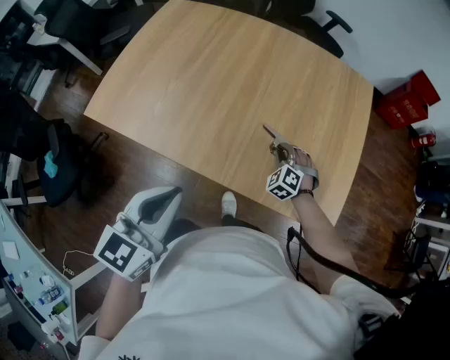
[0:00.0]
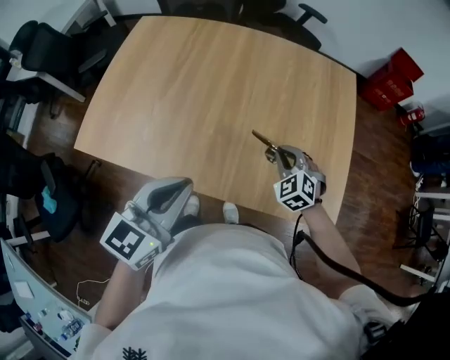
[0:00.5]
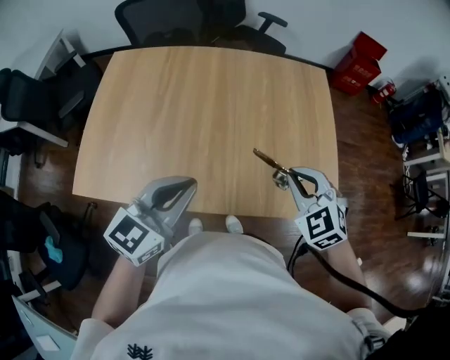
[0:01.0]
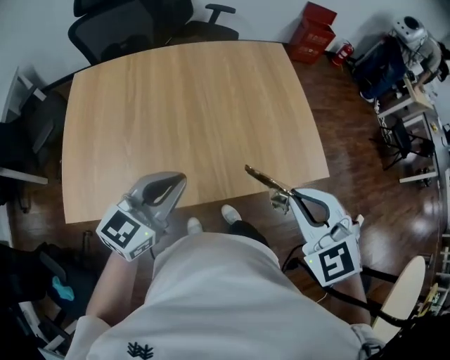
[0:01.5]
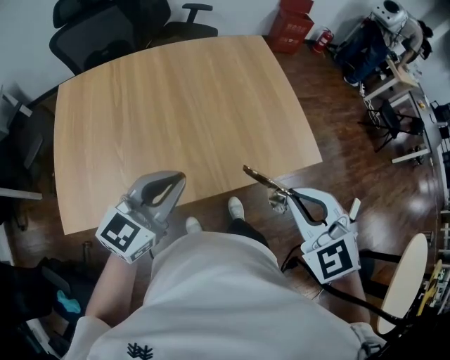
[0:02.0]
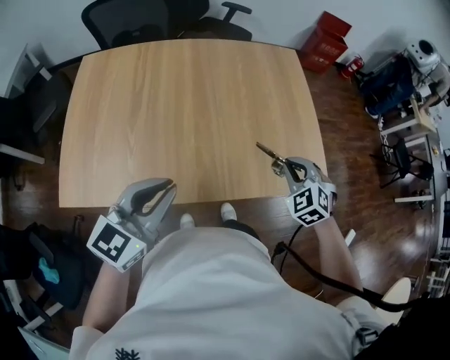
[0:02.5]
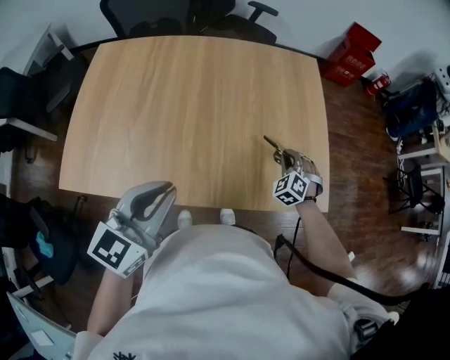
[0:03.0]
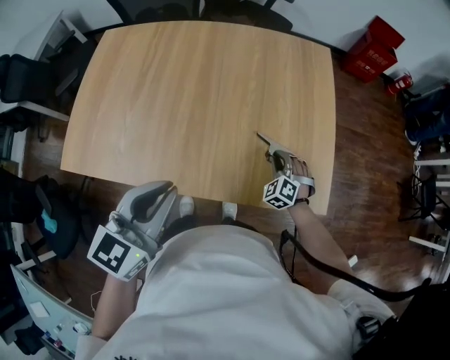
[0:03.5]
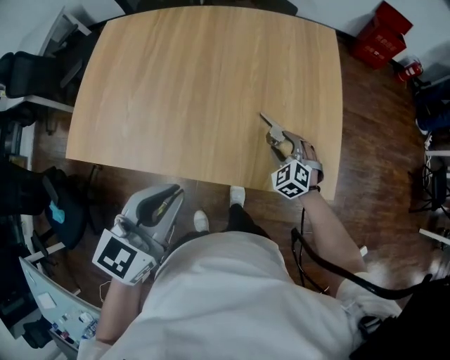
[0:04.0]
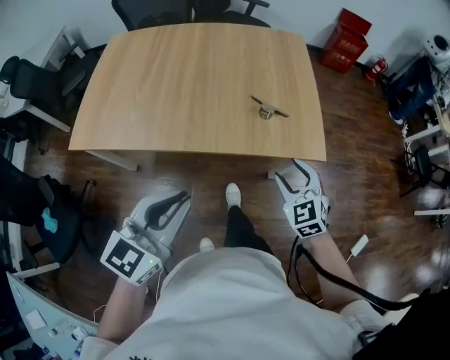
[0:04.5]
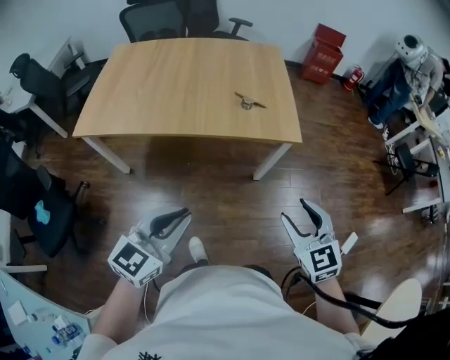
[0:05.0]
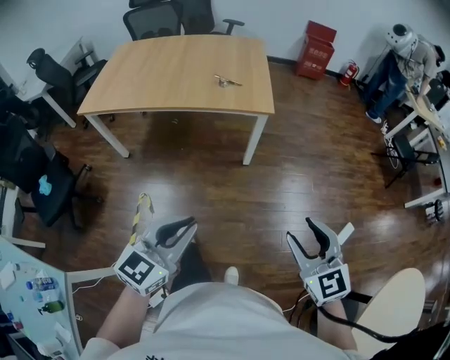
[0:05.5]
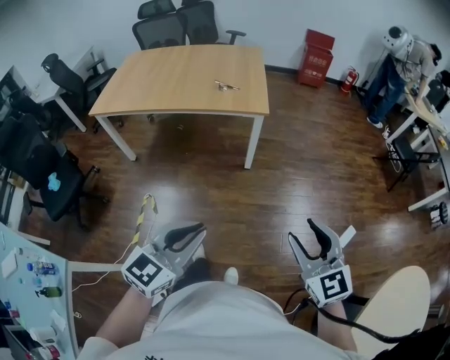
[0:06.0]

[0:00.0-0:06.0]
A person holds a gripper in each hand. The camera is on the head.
0:00.0 to 0:02.0: The right gripper heads upward, covering about 30 cm, and rotates approximately 40 degrees; the left gripper shifts by roughly 10 cm, and turns by approximately 50 degrees.
0:02.0 to 0:04.0: The left gripper heads to the right, covering about 10 cm, and turns by approximately 30 degrees. The right gripper moves downward and forward, approximately 35 cm, rotates about 20 degrees, and opens.
0:04.0 to 0:06.0: The pair of grippers is taken backward and to the right, approximately 60 cm. The right gripper goes about 25 cm upward, and points its fingers approximately 30 degrees further upward.

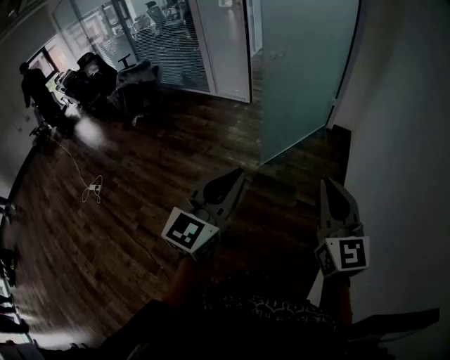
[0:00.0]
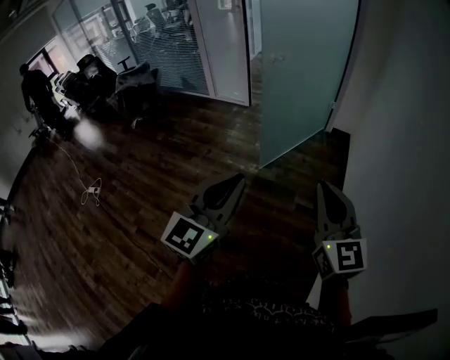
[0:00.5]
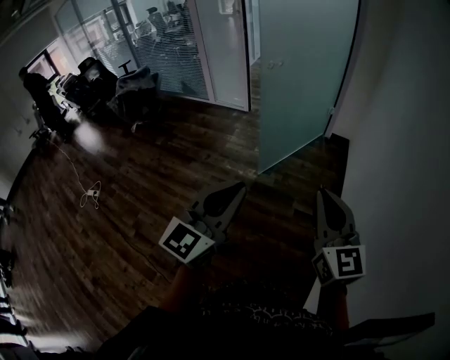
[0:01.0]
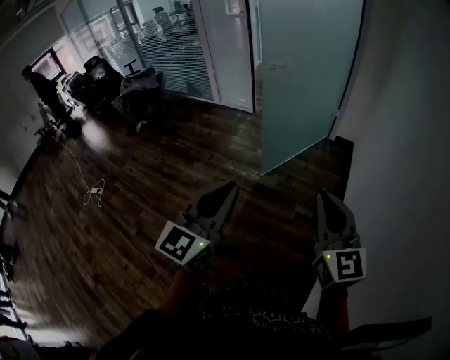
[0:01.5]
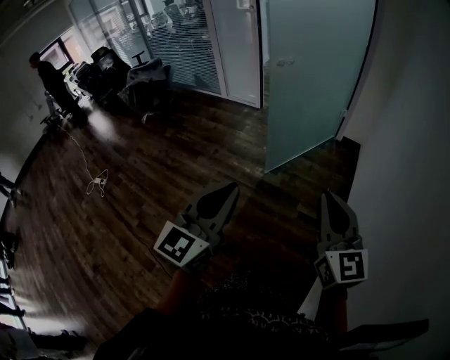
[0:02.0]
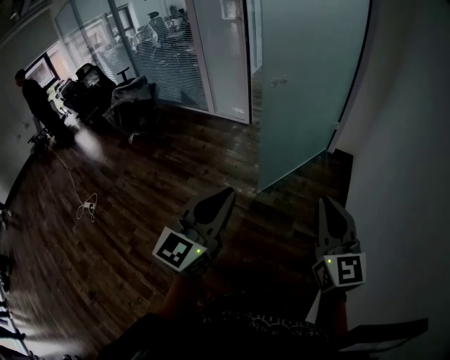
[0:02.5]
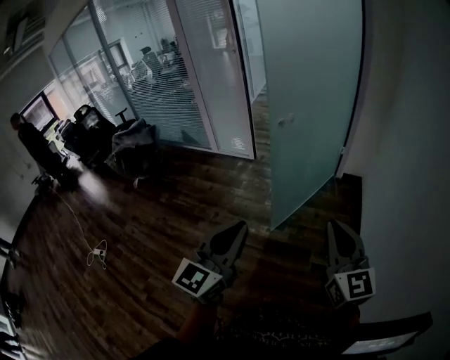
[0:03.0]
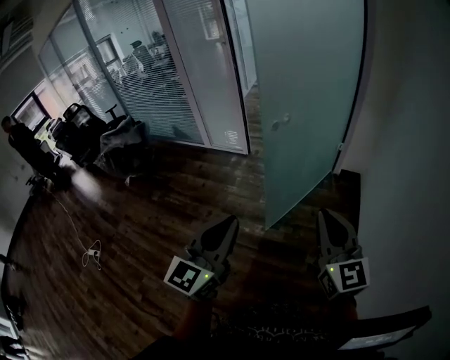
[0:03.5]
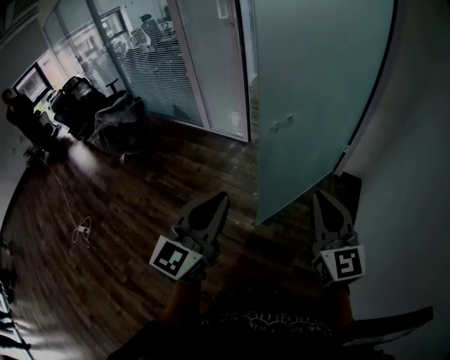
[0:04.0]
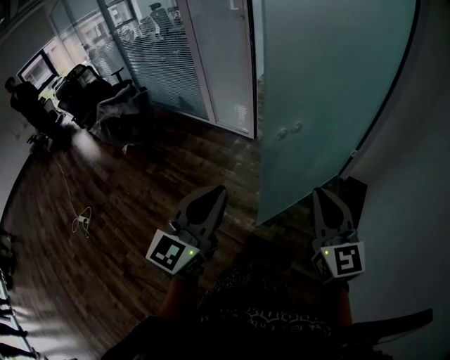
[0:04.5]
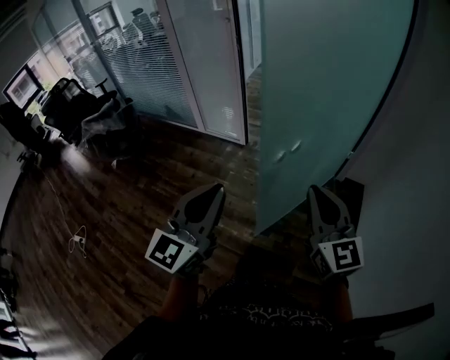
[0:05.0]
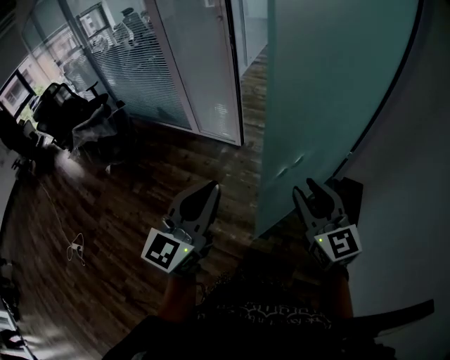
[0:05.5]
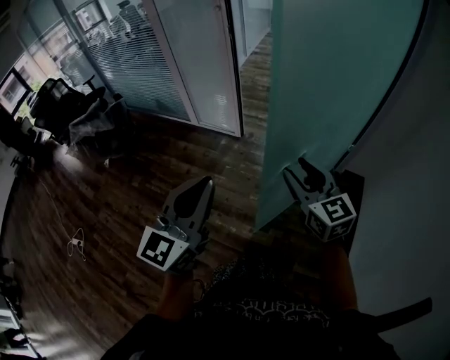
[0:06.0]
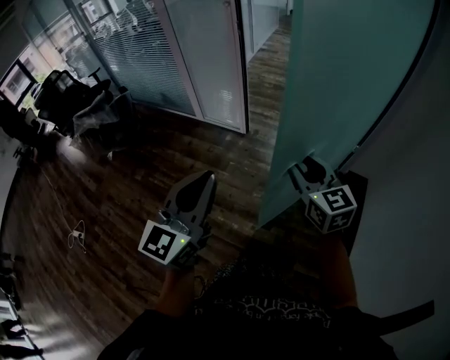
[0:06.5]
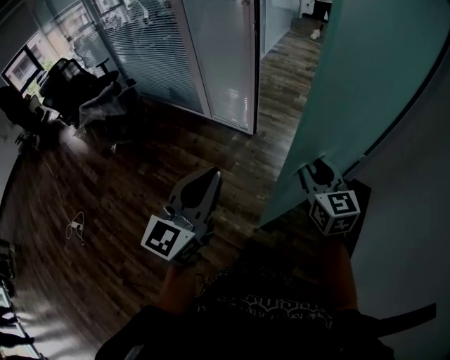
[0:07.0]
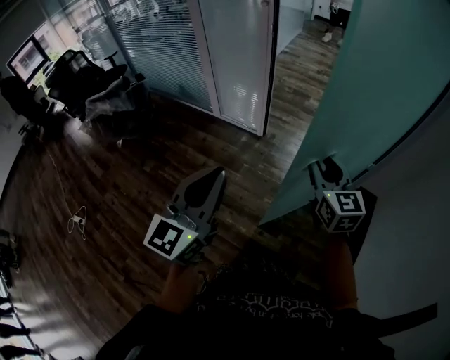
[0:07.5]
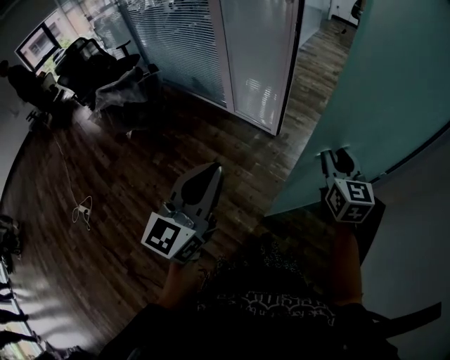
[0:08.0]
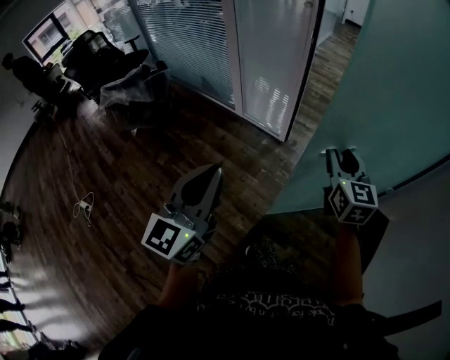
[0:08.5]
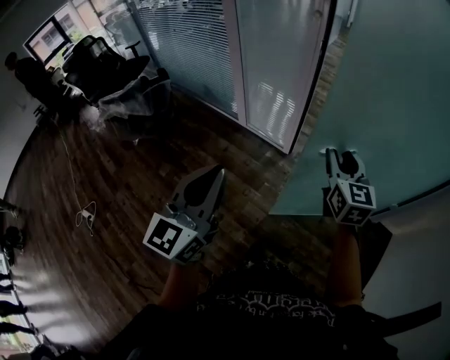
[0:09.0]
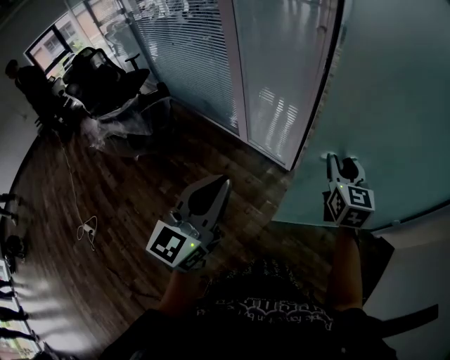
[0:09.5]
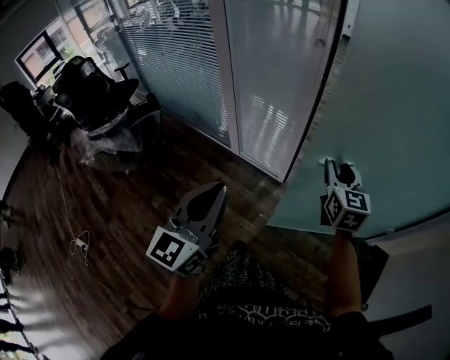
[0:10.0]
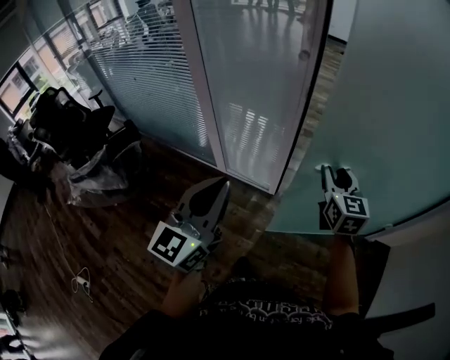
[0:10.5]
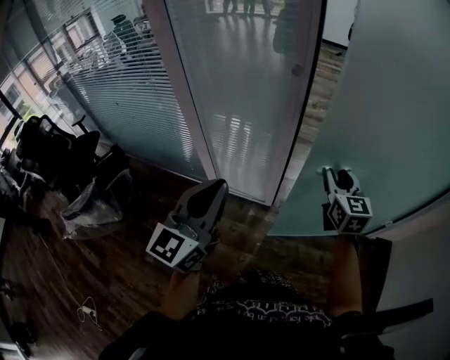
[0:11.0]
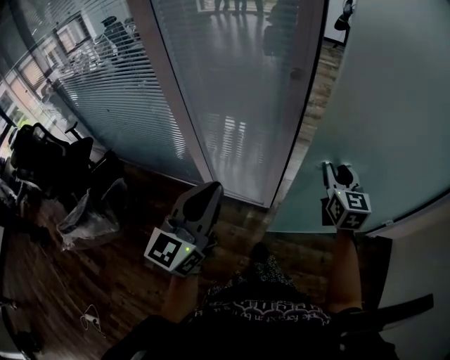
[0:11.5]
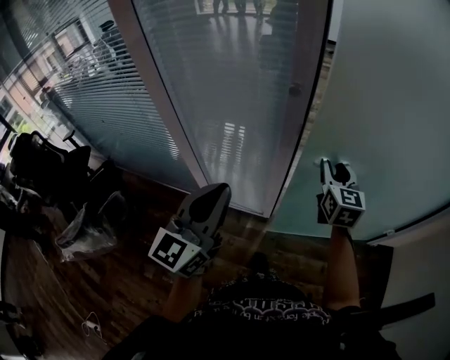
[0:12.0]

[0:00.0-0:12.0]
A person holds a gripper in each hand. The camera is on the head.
0:00.0 to 0:02.0: The right gripper shifts by approximately 5 cm.
0:02.0 to 0:04.0: The grippers both shift forward by about 40 cm.
0:04.0 to 0:06.0: Both grippers travel together forward, roughly 25 cm. The right gripper opens up.
0:06.0 to 0:08.0: The left gripper goes roughly 15 cm to the left and forward. Meanwhile the right gripper heads forward and to the left, covering roughly 15 cm.
0:08.0 to 0:10.0: The two grippers go approximately 30 cm forward.
0:10.0 to 0:12.0: Both grippers move forward, roughly 25 cm.

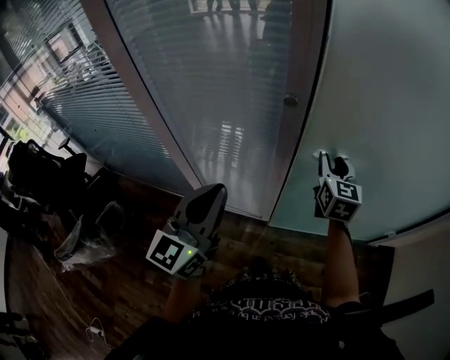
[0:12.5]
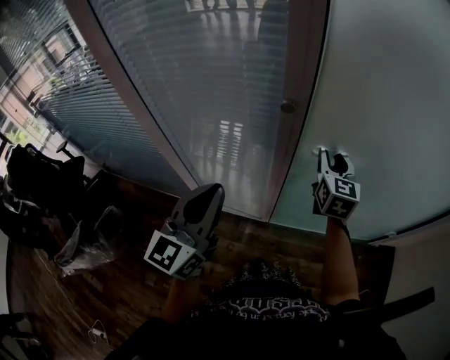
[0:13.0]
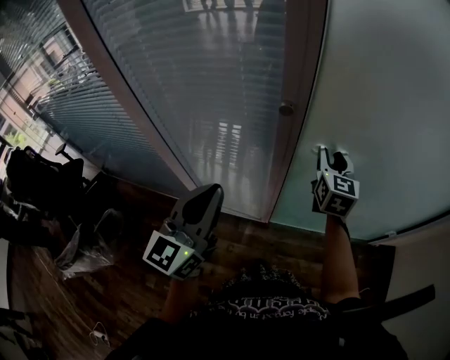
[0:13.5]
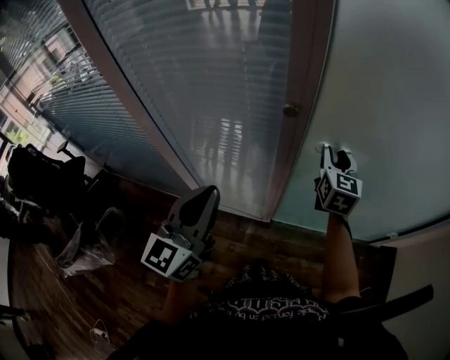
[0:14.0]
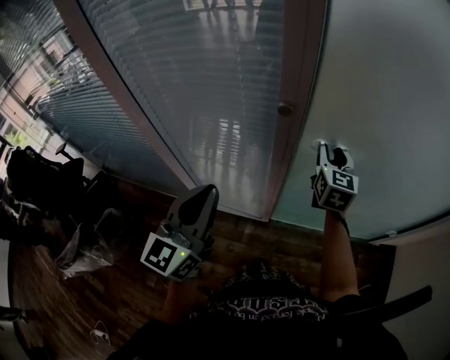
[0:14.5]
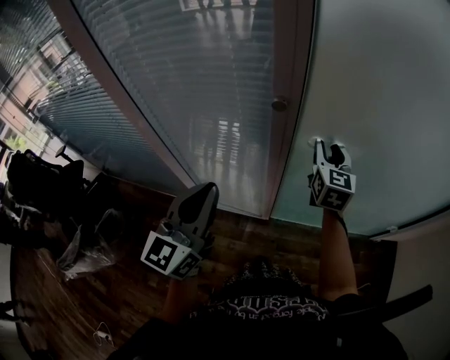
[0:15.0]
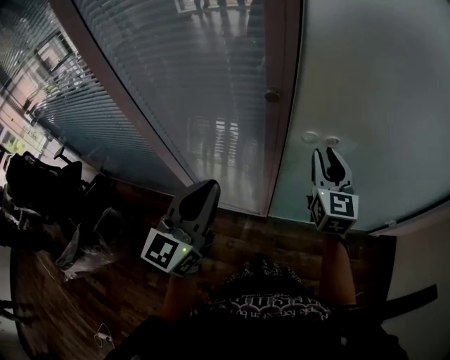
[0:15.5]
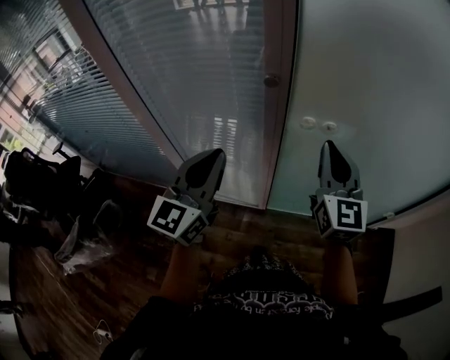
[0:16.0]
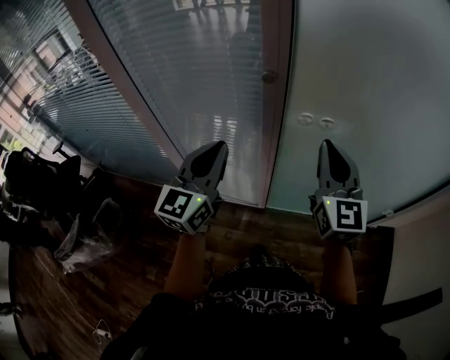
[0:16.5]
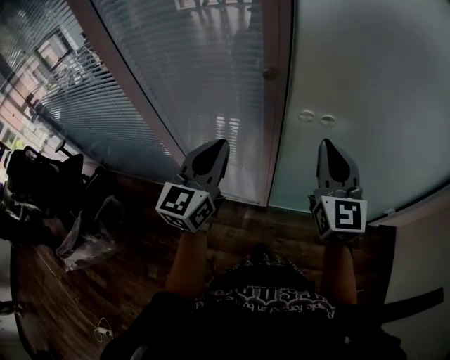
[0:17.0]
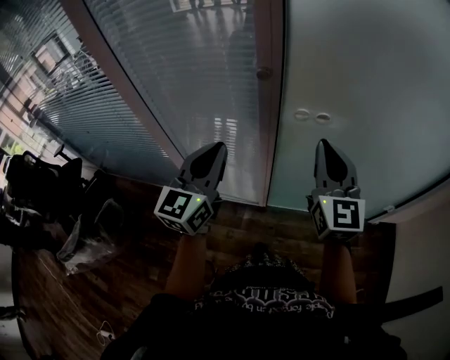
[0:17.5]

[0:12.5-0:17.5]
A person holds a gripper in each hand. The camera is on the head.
0:12.5 to 0:15.0: The grippers move only a little.
0:15.0 to 0:17.5: The right gripper heads backward and upward, covering some 20 cm, and closes up.

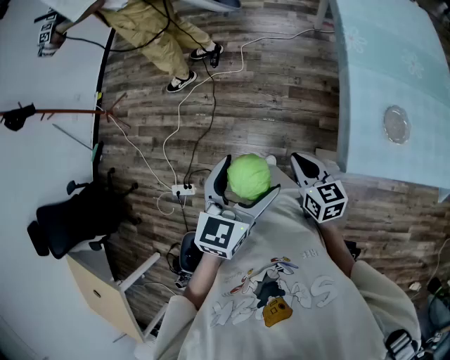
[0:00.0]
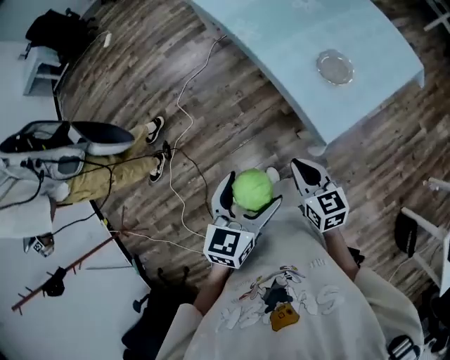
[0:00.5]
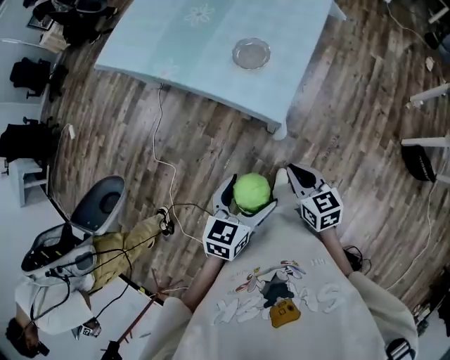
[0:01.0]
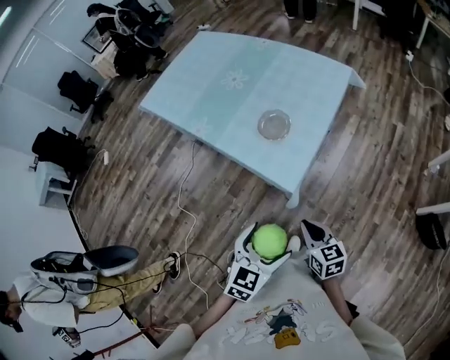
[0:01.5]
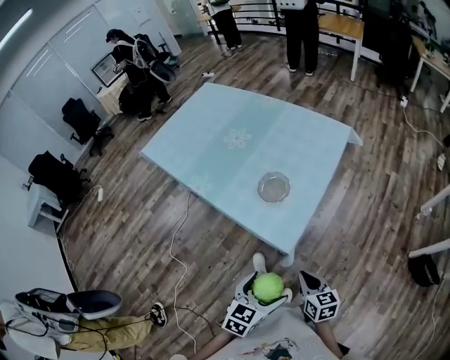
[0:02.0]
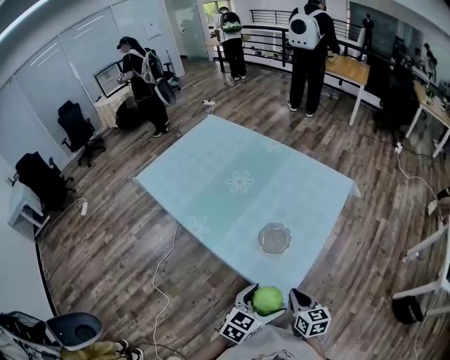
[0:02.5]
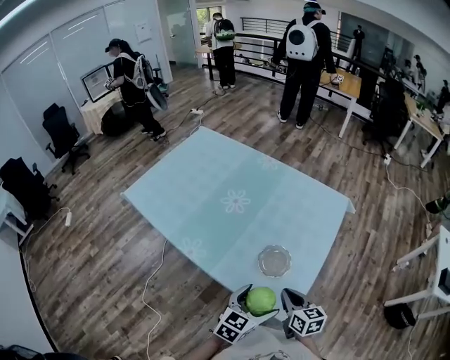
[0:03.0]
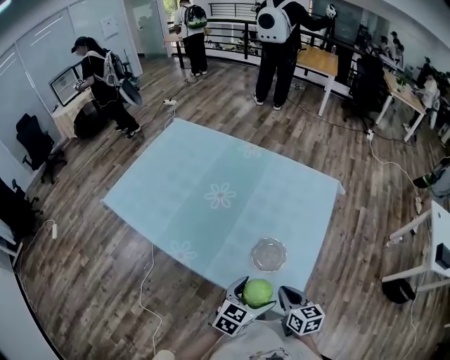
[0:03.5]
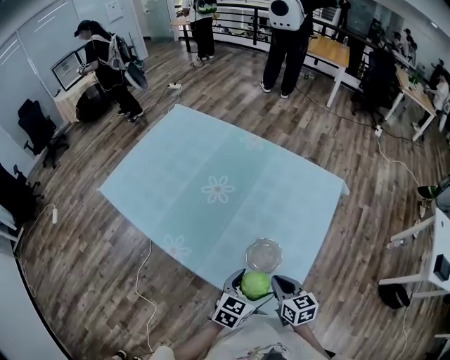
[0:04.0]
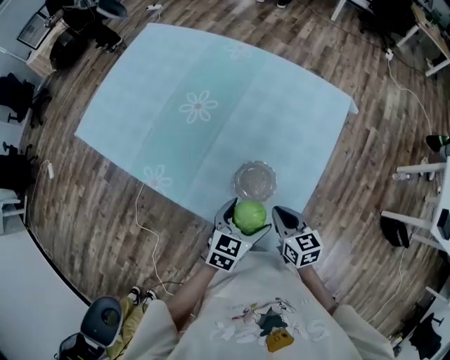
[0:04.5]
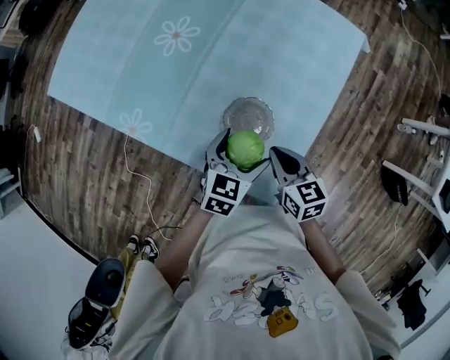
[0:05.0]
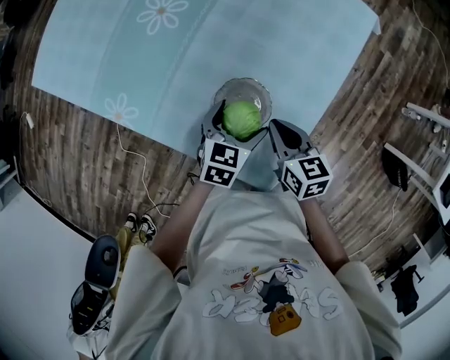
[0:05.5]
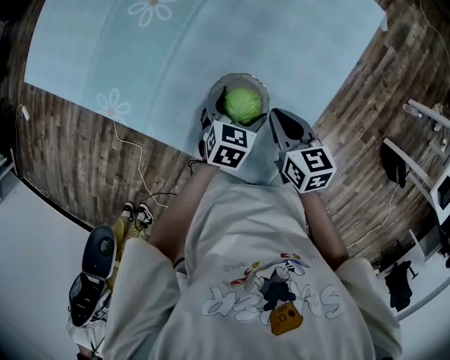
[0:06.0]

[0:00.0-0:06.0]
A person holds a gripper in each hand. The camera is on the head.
0:00.0 to 0:02.0: The left gripper changes place by about 30 cm, and changes its angle by some 60 degrees; the right gripper ends up some 30 cm from where it was, and swivels about 60 degrees.
0:02.0 to 0:04.0: The left gripper travels forward by about 30 cm. The right gripper shifts roughly 30 cm forward and to the left.
0:04.0 to 0:06.0: The right gripper travels downward and forward by about 15 cm, while the left gripper moves downward and forward, approximately 20 cm, and turns by approximately 20 degrees.
